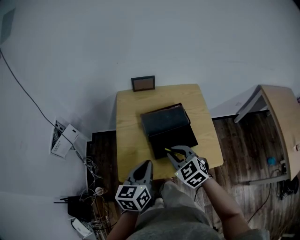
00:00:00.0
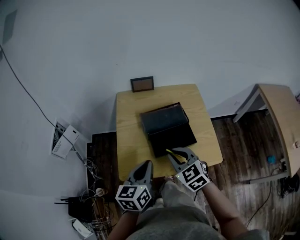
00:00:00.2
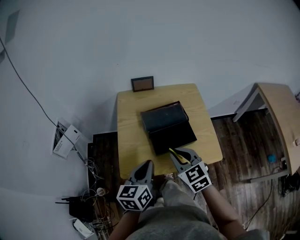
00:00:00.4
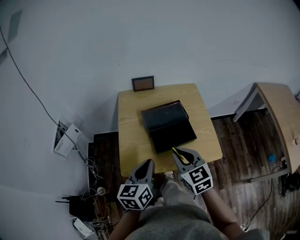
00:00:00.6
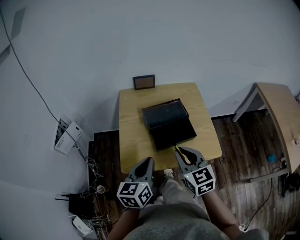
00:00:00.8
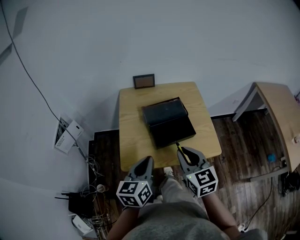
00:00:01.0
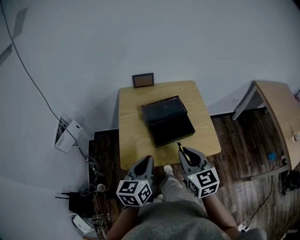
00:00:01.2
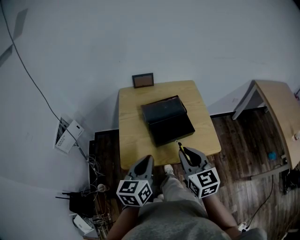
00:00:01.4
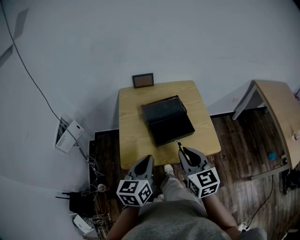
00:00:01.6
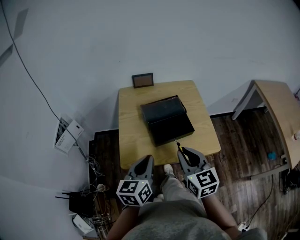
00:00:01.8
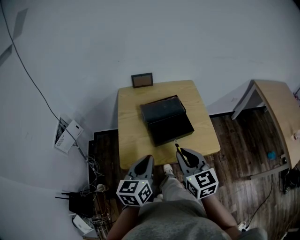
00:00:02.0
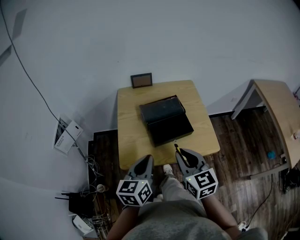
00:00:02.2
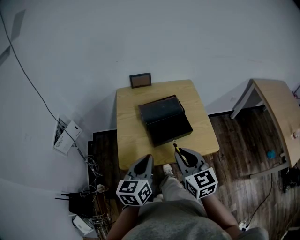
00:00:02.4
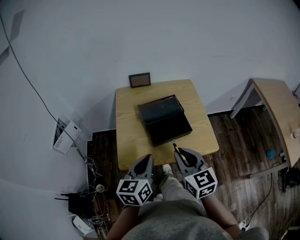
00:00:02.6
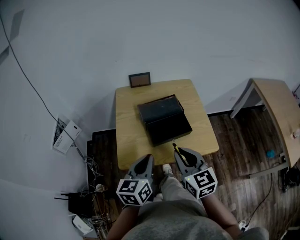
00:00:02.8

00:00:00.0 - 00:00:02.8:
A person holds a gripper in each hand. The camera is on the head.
00:00:00.0 - 00:00:01.4: The left gripper heads backward, covering about 5 cm. Meanwhile the right gripper heads backward and upward, covering roughly 15 cm, and turns by approximately 40 degrees.
00:00:01.4 - 00:00:02.8: Both grippers stay about where they are.

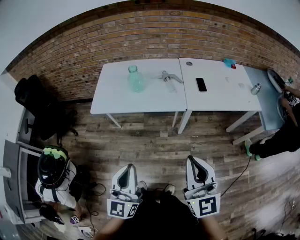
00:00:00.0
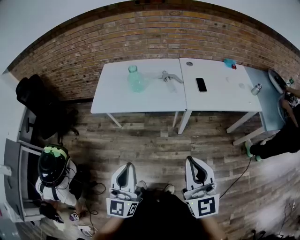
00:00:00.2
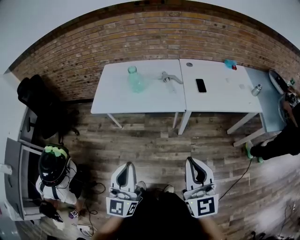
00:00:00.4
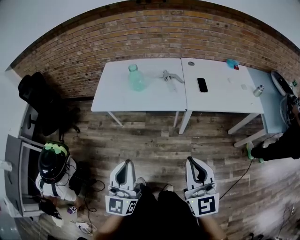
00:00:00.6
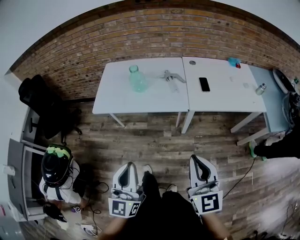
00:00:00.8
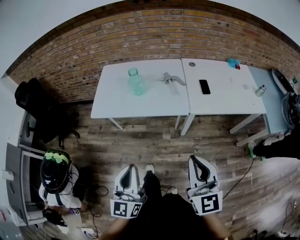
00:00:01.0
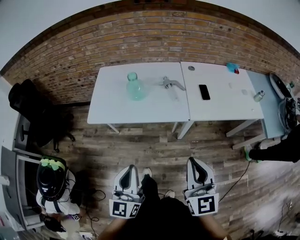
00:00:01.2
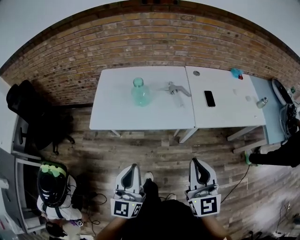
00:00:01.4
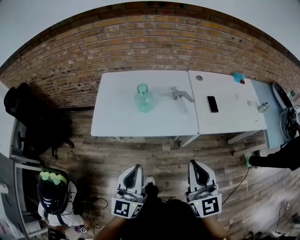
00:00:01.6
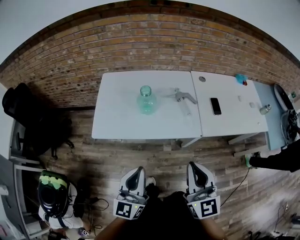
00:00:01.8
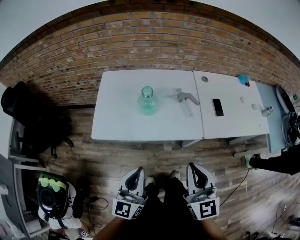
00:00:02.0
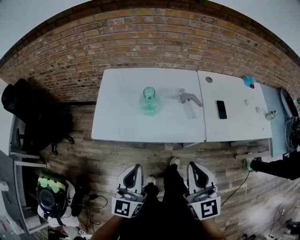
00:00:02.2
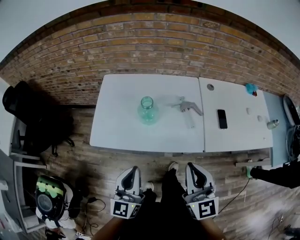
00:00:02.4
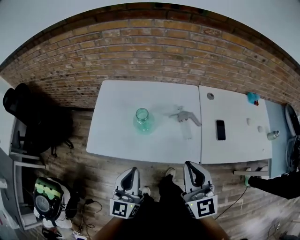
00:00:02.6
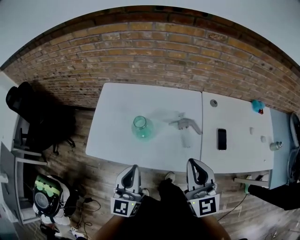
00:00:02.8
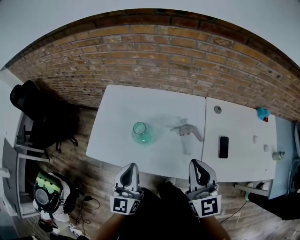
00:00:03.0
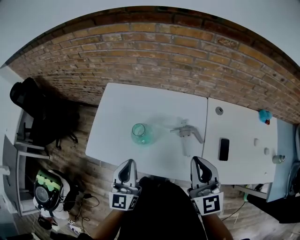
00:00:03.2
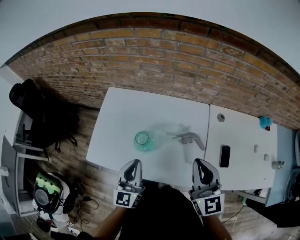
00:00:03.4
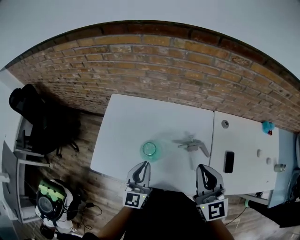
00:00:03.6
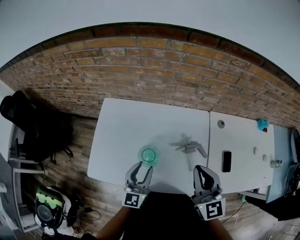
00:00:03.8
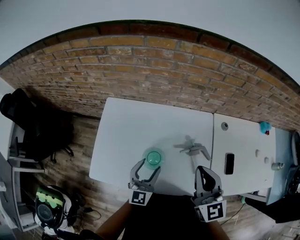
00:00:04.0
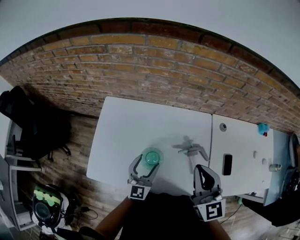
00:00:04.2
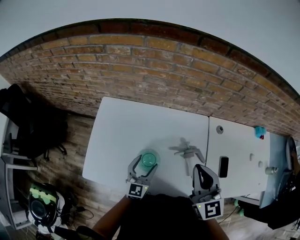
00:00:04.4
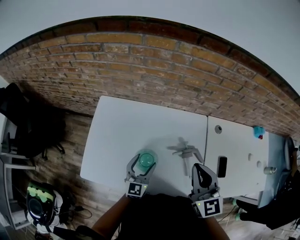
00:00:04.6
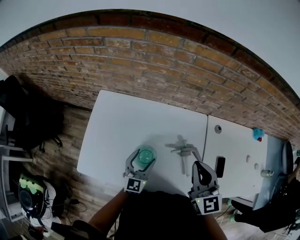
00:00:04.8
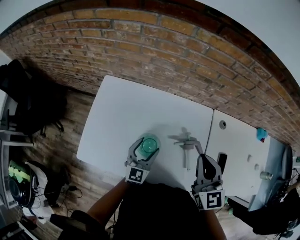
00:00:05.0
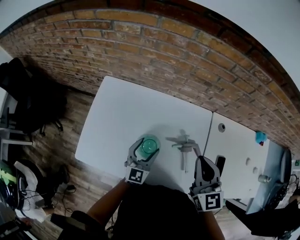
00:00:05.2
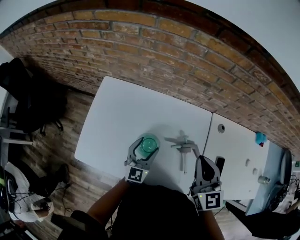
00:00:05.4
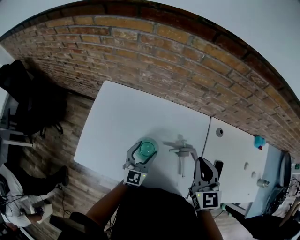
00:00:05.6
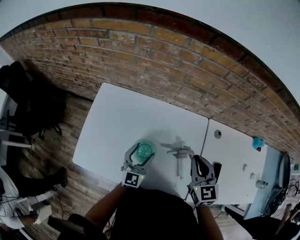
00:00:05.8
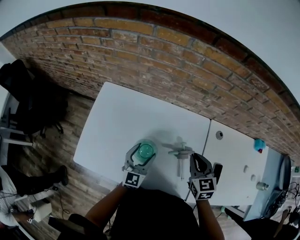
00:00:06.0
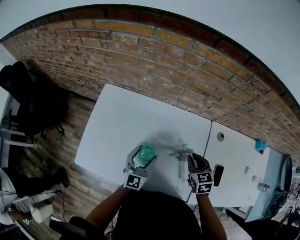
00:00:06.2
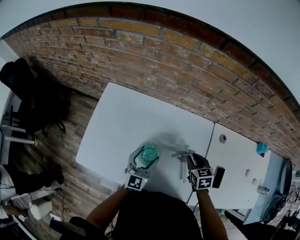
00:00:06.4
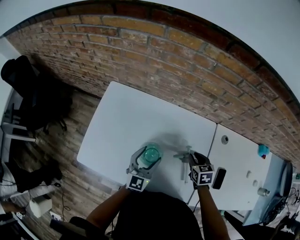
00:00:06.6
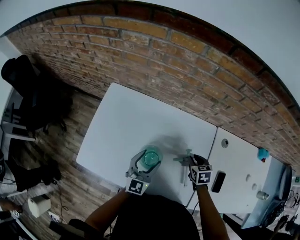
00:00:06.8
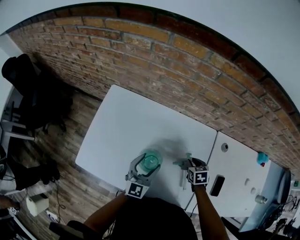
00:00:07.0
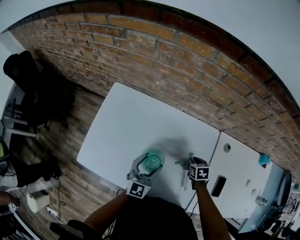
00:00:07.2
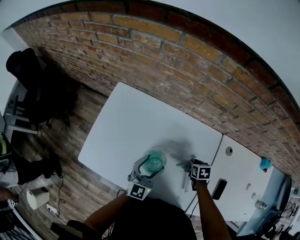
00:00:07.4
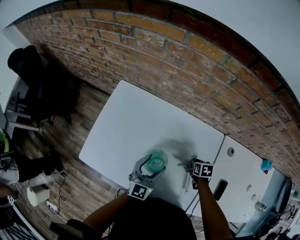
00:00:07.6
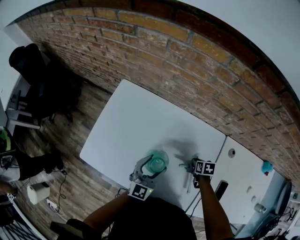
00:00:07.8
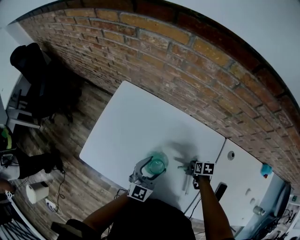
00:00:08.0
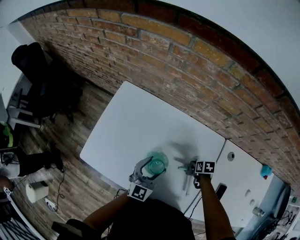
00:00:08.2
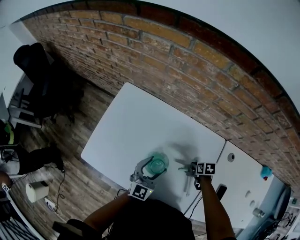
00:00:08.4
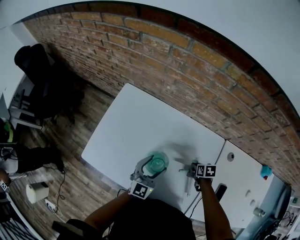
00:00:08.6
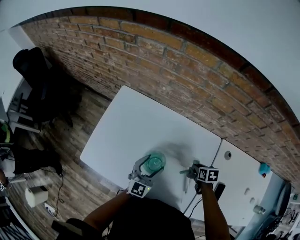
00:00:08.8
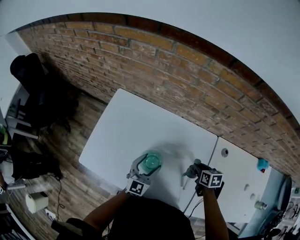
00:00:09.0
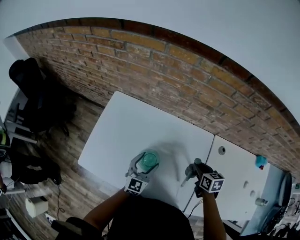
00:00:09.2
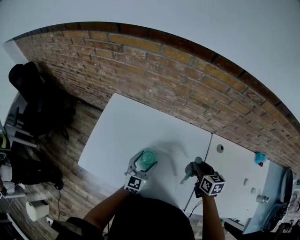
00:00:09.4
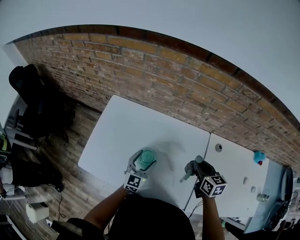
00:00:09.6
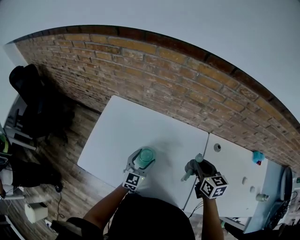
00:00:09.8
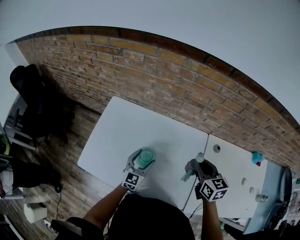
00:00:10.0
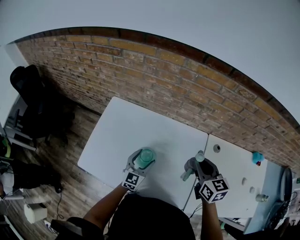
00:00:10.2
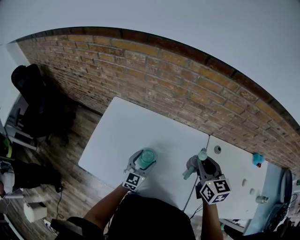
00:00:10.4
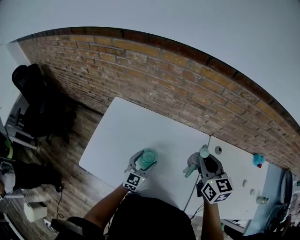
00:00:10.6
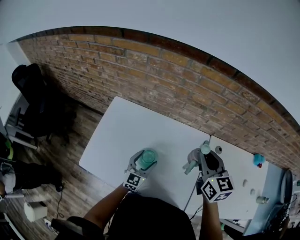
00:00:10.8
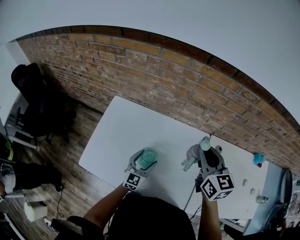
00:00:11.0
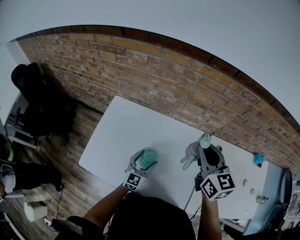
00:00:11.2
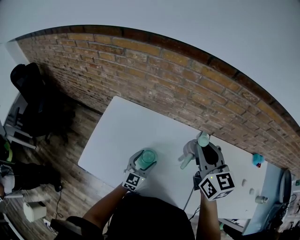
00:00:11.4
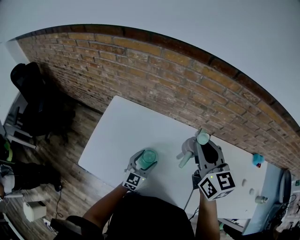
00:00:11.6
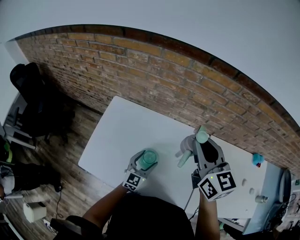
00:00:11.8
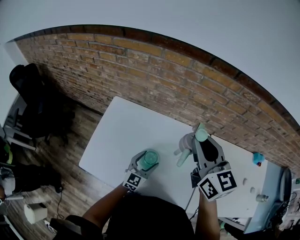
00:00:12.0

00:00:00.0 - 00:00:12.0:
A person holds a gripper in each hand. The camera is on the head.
00:00:00.0 - 00:00:01.6: The two grippers go approximately 20 cm forward.
00:00:01.6 - 00:00:03.0: The grippers both shift forward by approximately 30 cm.
00:00:03.0 - 00:00:04.4: The left gripper shifts about 25 cm forward and downward, and opens up, while the right gripper is displaced forward and to the left by roughly 15 cm.
00:00:04.4 - 00:00:06.0: The right gripper travels downward, forward and to the right by roughly 15 cm, and turns by about 30 degrees.
00:00:06.0 - 00:00:07.6: The right gripper moves downward, roughly 25 cm, angles its fingers downward, by approximately 40 degrees, and opens.
00:00:07.6 - 00:00:09.0: The right gripper is displaced upward by about 10 cm.
00:00:09.0 - 00:00:10.4: The right gripper heads upward, covering about 25 cm, and tips its fingers upward by some 30 degrees.
00:00:10.4 - 00:00:12.0: The right gripper shifts approximately 15 cm upward and to the left.

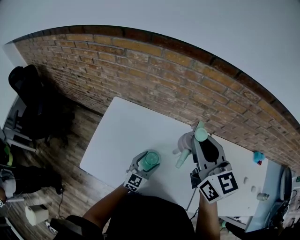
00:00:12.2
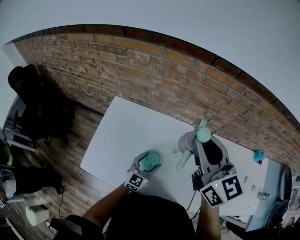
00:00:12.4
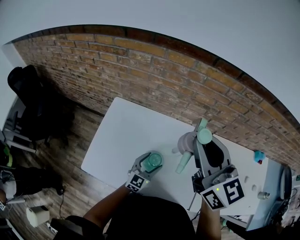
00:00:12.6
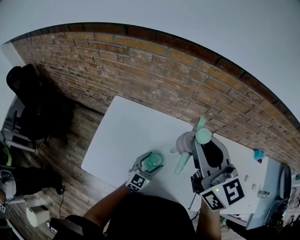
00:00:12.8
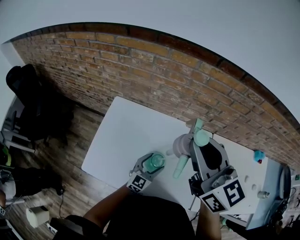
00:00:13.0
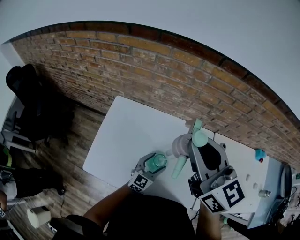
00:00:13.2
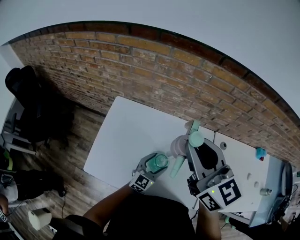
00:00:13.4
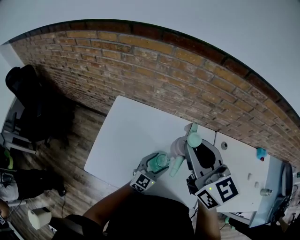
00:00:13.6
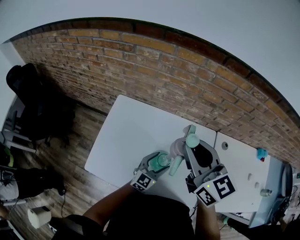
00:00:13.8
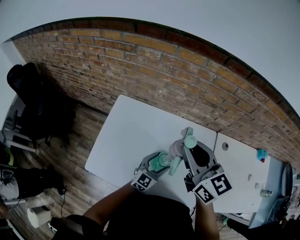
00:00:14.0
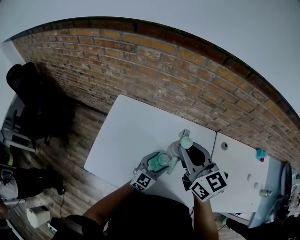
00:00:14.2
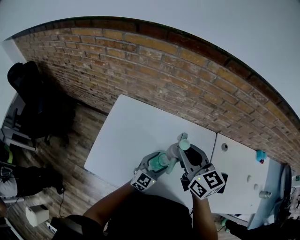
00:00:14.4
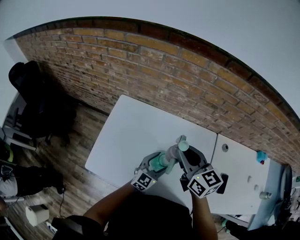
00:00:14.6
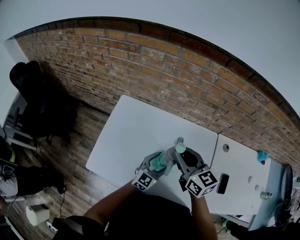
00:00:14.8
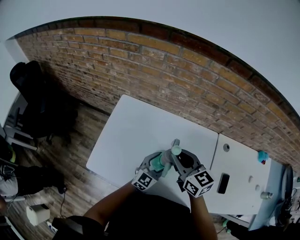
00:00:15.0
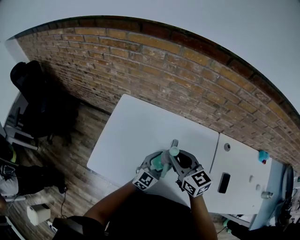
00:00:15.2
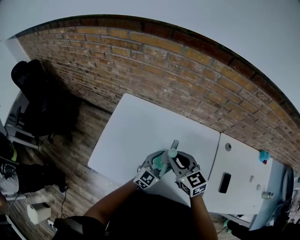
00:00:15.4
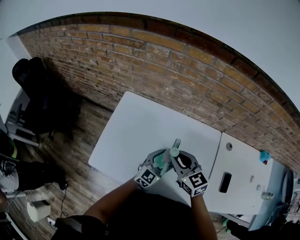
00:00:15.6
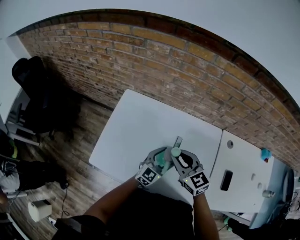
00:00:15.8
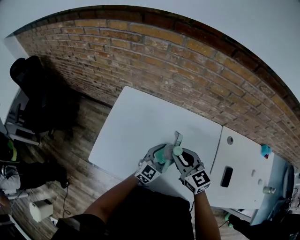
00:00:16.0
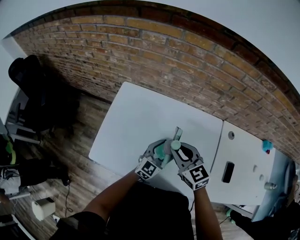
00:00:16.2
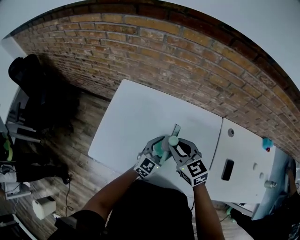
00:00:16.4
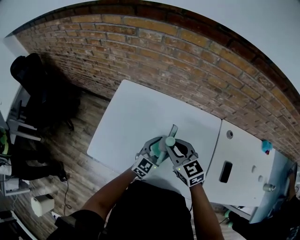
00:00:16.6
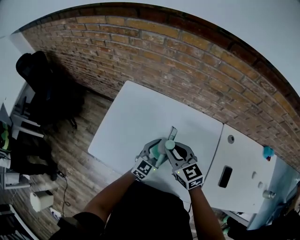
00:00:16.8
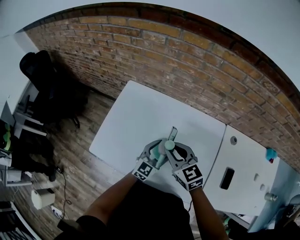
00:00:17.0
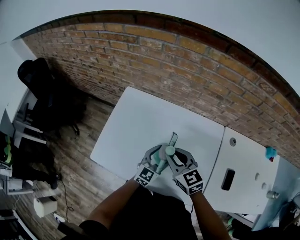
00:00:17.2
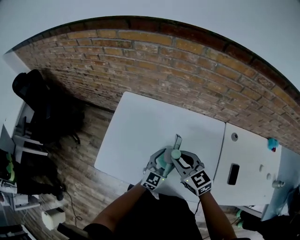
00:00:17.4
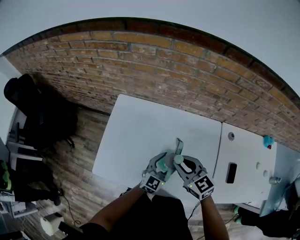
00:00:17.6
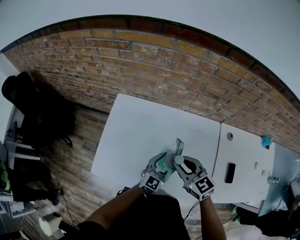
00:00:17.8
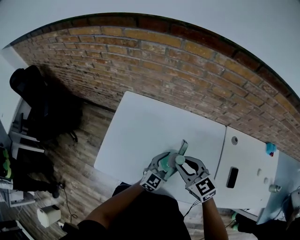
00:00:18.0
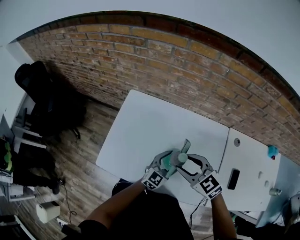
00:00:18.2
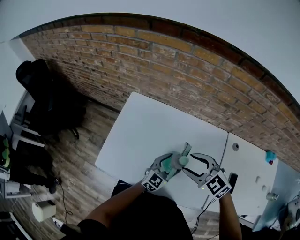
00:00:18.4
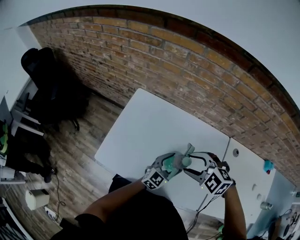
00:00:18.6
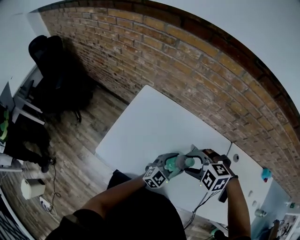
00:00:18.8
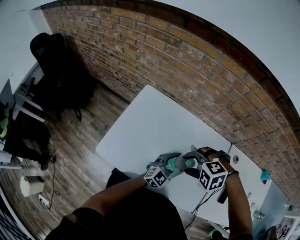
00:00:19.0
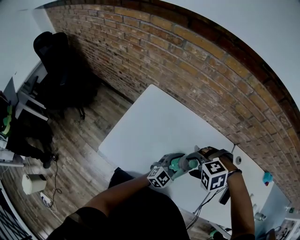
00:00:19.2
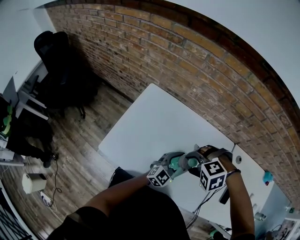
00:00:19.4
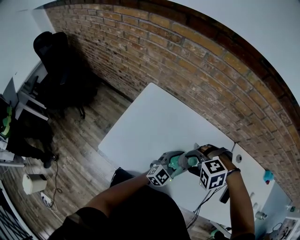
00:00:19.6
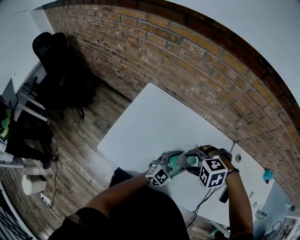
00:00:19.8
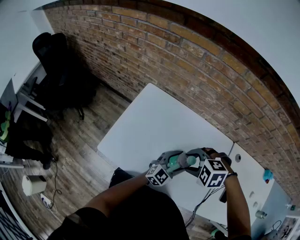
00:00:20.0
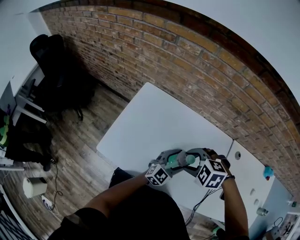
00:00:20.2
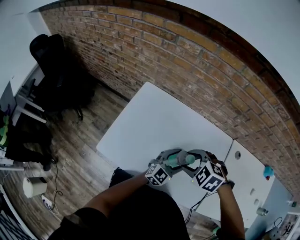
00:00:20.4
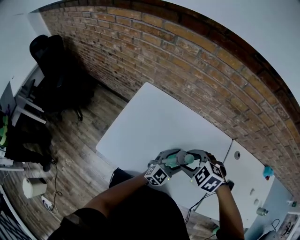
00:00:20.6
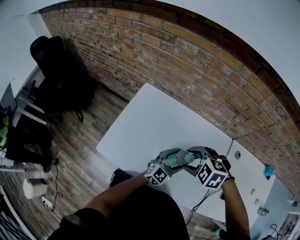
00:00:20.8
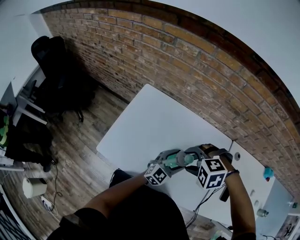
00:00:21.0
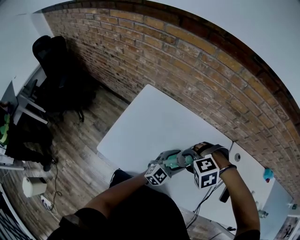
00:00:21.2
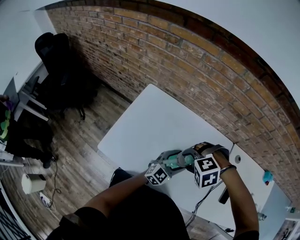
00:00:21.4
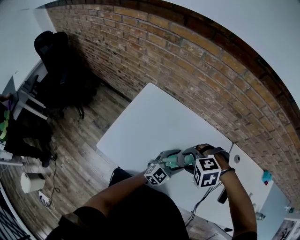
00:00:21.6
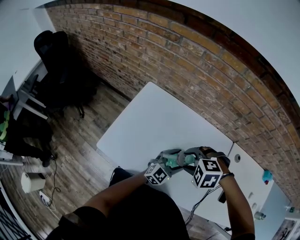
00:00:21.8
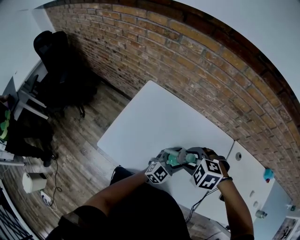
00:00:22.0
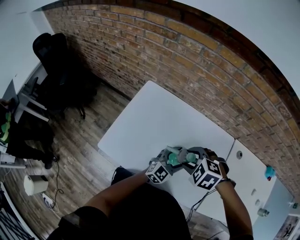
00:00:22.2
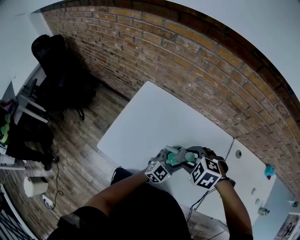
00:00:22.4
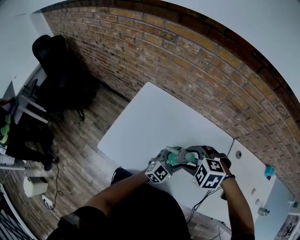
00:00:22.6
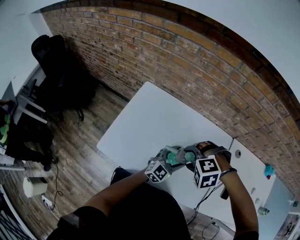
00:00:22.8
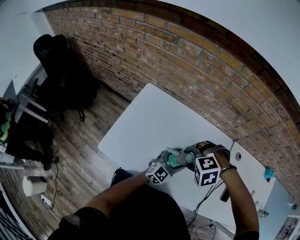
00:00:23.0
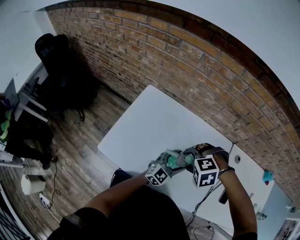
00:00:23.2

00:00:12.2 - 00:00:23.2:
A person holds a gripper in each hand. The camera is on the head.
00:00:12.2 - 00:00:13.8: The right gripper is displaced to the left by roughly 5 cm.
00:00:13.8 - 00:00:15.4: The right gripper goes roughly 20 cm downward.
00:00:15.4 - 00:00:17.0: The grippers move only a little.
00:00:17.0 - 00:00:18.4: The right gripper changes its angle by roughly 30 degrees, and opens up.
00:00:18.4 - 00:00:20.0: The right gripper moves some 5 cm, and tips its fingers downward by about 30 degrees.
